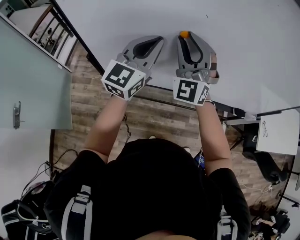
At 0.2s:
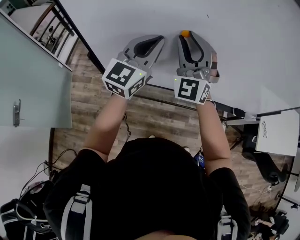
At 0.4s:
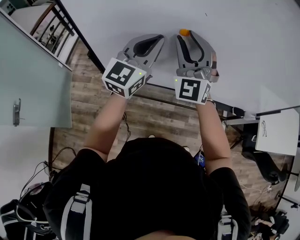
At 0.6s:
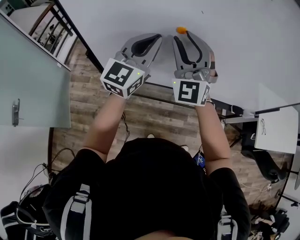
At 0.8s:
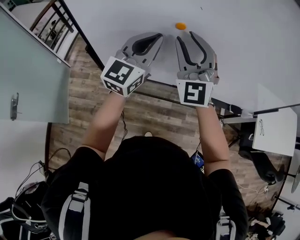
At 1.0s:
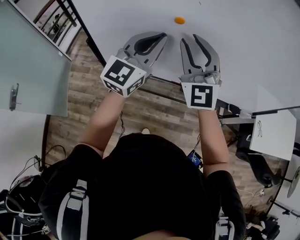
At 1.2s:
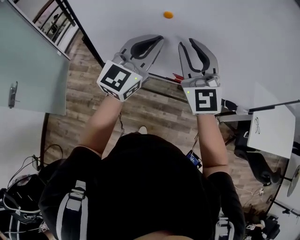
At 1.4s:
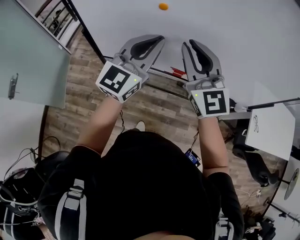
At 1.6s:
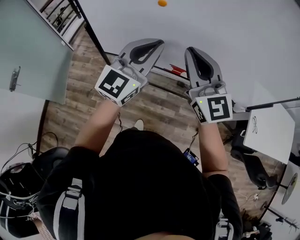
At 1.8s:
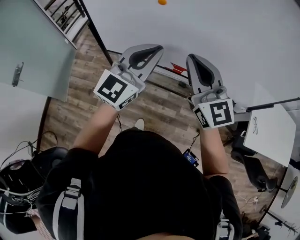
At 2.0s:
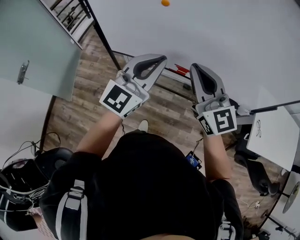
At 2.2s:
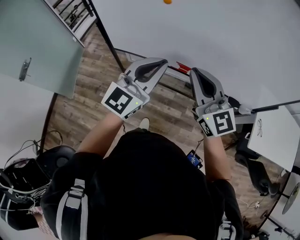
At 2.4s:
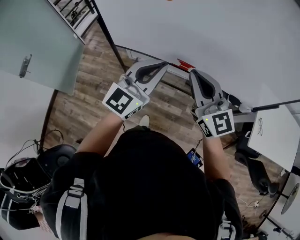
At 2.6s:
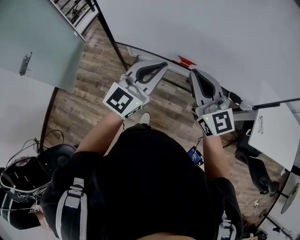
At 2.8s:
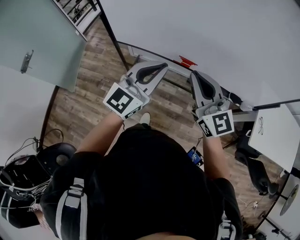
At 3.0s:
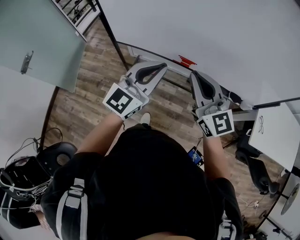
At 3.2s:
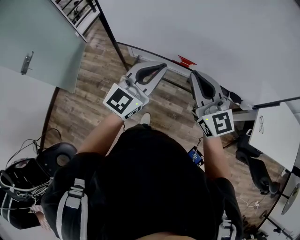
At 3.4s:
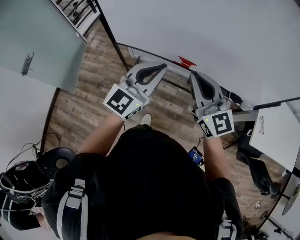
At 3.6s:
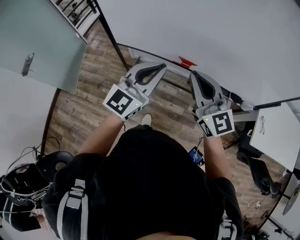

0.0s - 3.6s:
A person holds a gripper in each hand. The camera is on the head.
0.0s - 1.8s: The grippers both shift backward and to the right by about 25 cm. The right gripper rotates around the line of its fingers by about 40 degrees, clockwise from behind, and closes.
1.8s - 3.6s: The grippers both shift backward and downward by roughly 10 cm.

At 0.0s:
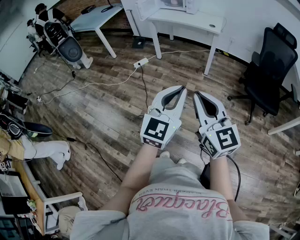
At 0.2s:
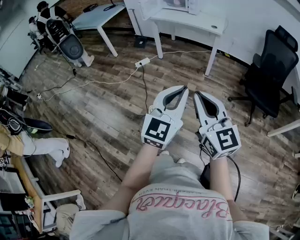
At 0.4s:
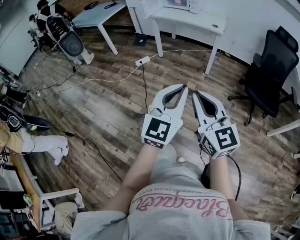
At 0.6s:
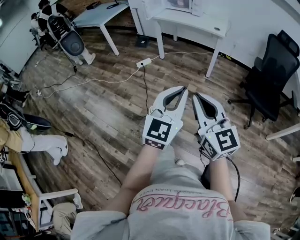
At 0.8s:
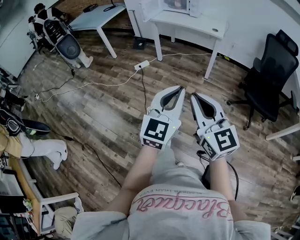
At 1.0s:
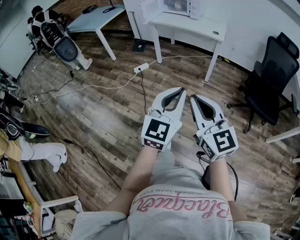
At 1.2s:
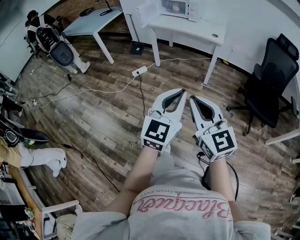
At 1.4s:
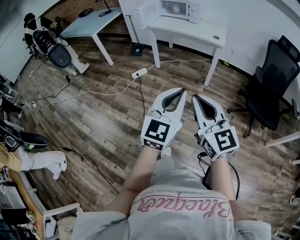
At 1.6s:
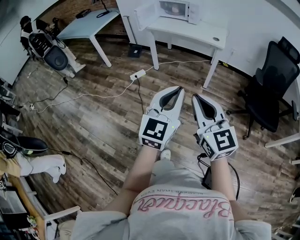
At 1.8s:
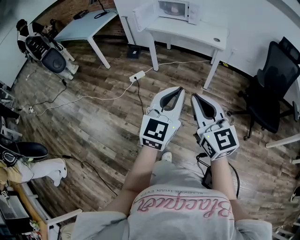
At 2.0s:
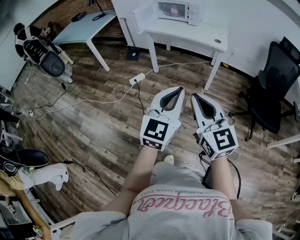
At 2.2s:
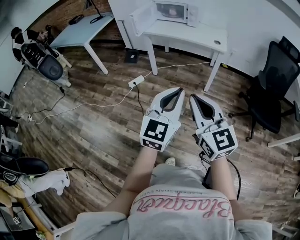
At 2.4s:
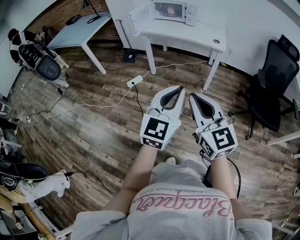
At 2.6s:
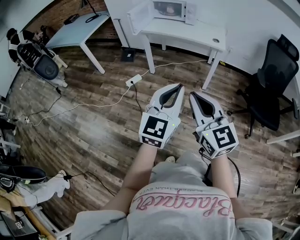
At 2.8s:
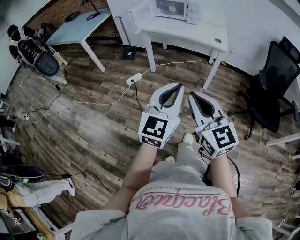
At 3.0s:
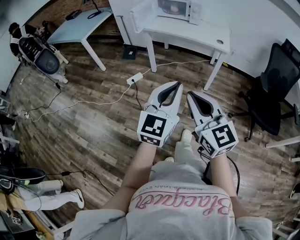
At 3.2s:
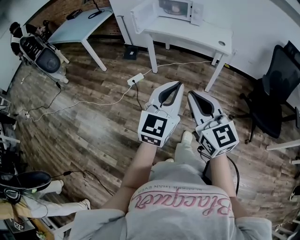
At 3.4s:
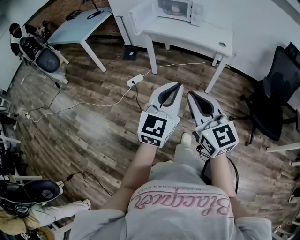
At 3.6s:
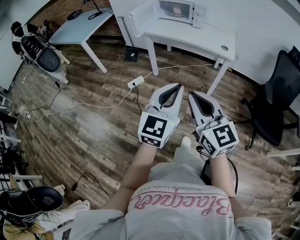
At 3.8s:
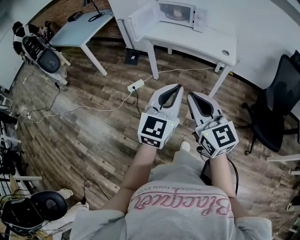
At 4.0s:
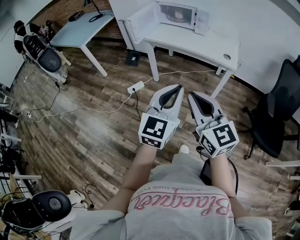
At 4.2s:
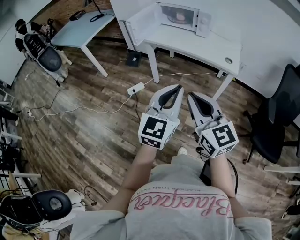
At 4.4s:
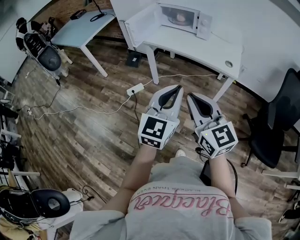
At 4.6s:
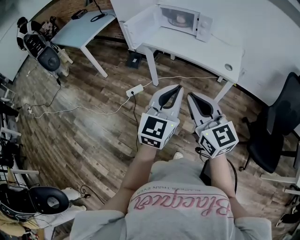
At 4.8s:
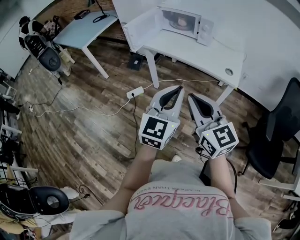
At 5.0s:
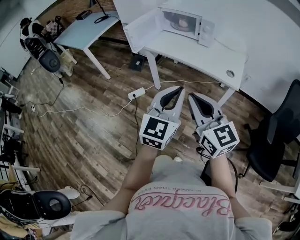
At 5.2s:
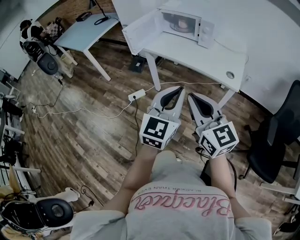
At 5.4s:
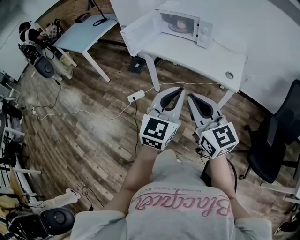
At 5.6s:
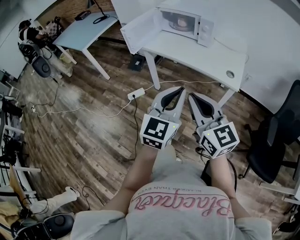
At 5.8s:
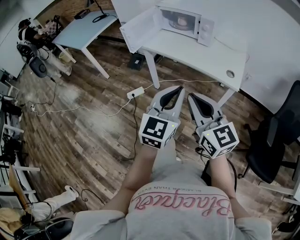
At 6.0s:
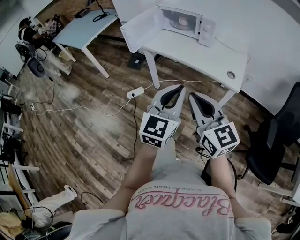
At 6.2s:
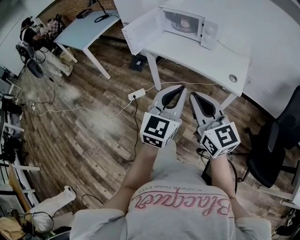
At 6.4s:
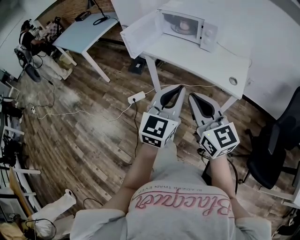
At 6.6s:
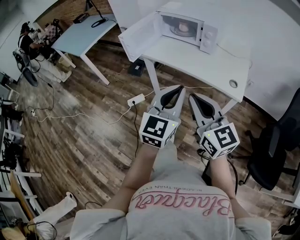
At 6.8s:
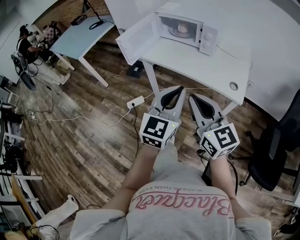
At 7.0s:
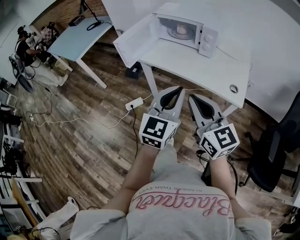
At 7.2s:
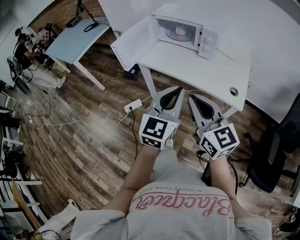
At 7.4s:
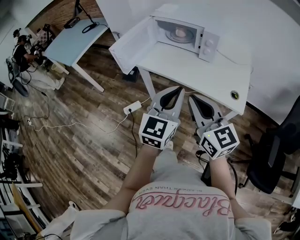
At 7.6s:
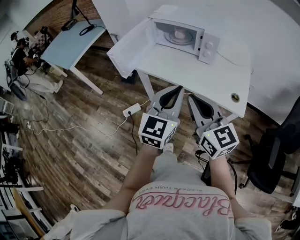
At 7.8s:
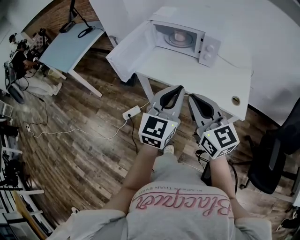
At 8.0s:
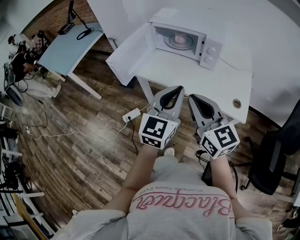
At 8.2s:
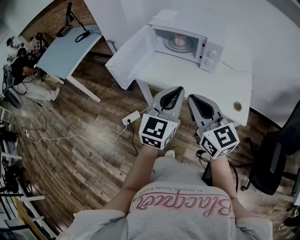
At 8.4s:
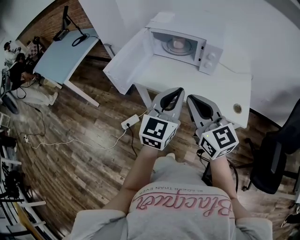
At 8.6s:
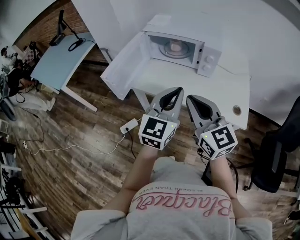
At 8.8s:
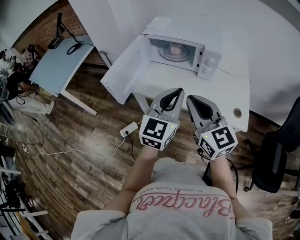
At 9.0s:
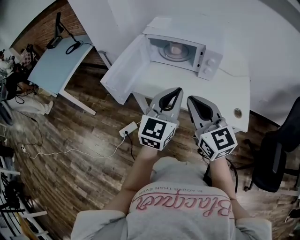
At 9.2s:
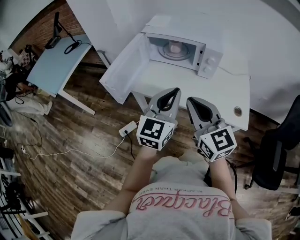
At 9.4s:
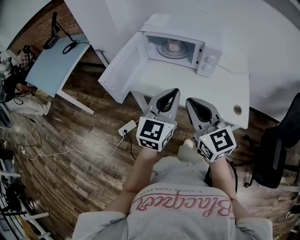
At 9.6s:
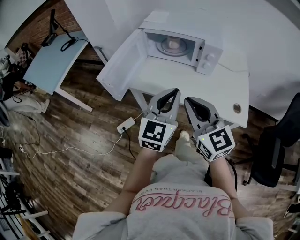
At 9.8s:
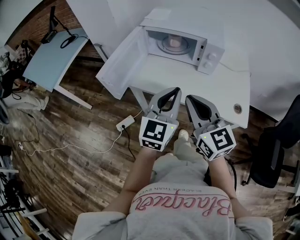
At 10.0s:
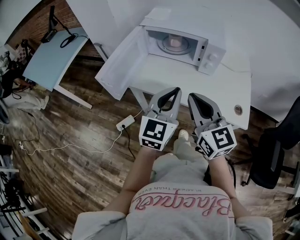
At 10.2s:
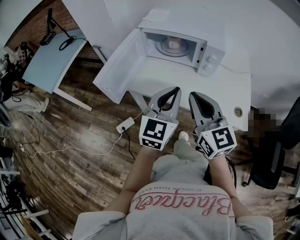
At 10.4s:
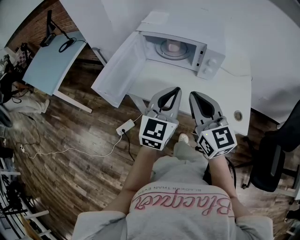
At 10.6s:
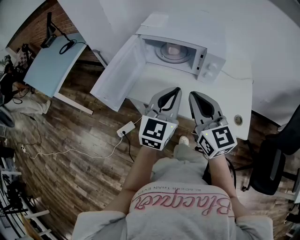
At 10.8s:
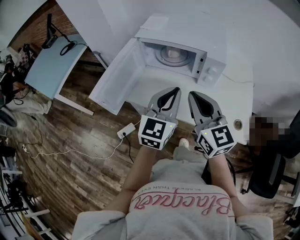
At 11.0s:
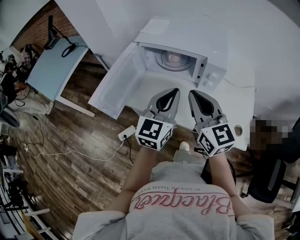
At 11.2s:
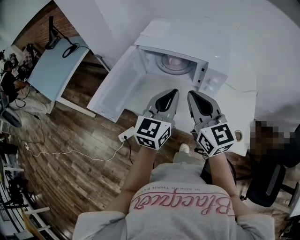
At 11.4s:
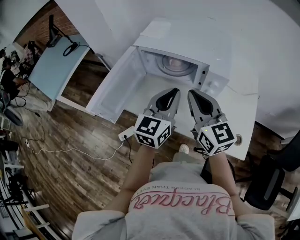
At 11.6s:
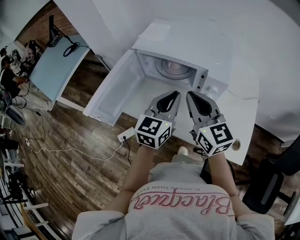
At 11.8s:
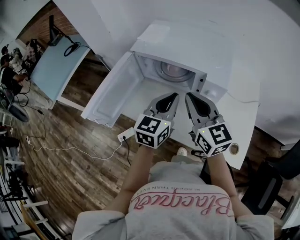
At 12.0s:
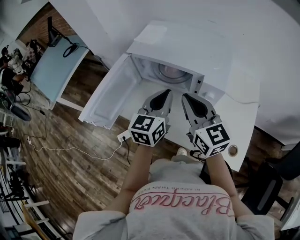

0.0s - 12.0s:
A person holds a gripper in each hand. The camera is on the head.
0.0s - 1.6s: Both grippers travel together forward, approximately 15 cm.
1.6s - 3.0s: The two grippers go some 15 cm forward and to the left.
3.0s - 4.4s: The two grippers go some 20 cm forward.
4.4s - 6.0s: Both grippers move forward and to the right, roughly 10 cm.
6.0s - 7.6s: The grippers both shift forward by roughly 20 cm.
7.6s - 9.0s: The grippers both shift forward by roughly 10 cm.
9.0s - 10.4s: The right gripper is displaced forward by roughly 5 cm, while the left gripper moves some 5 cm.
10.4s - 12.0s: Both grippers travel together forward, about 15 cm.

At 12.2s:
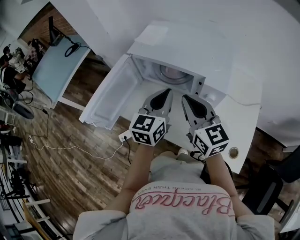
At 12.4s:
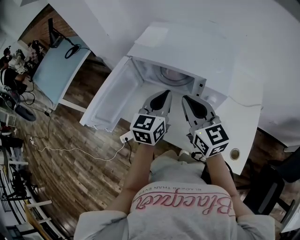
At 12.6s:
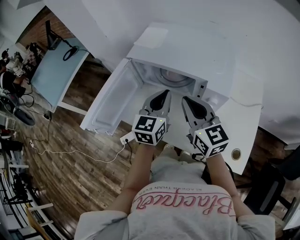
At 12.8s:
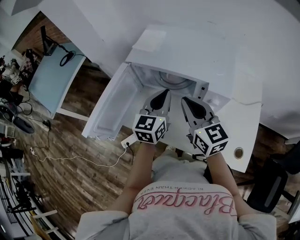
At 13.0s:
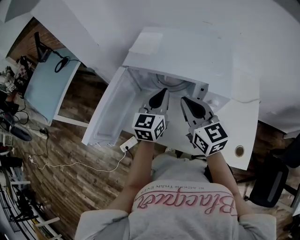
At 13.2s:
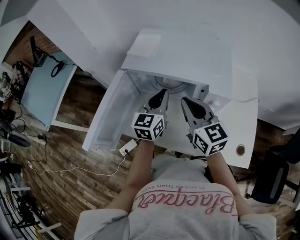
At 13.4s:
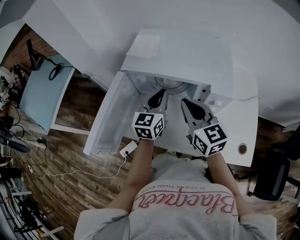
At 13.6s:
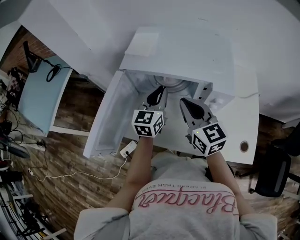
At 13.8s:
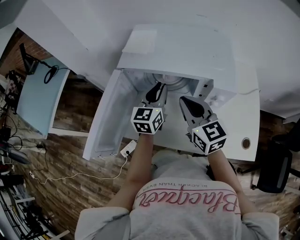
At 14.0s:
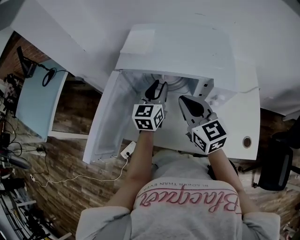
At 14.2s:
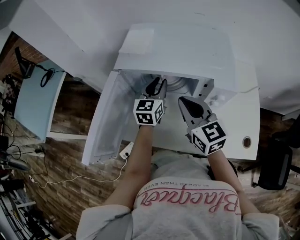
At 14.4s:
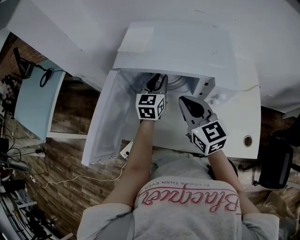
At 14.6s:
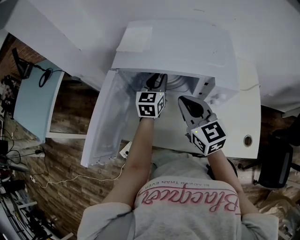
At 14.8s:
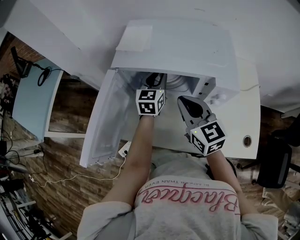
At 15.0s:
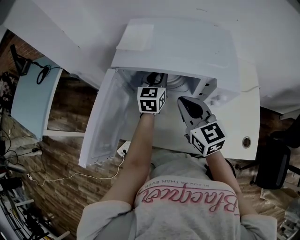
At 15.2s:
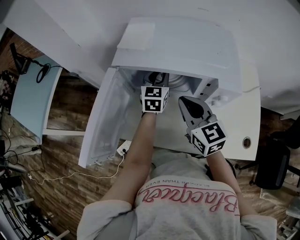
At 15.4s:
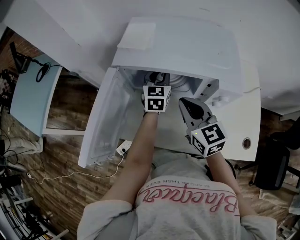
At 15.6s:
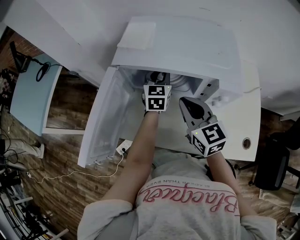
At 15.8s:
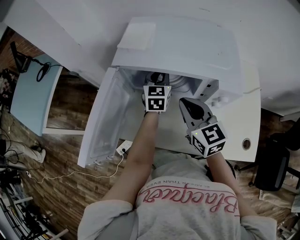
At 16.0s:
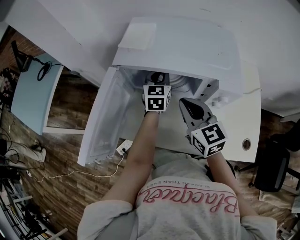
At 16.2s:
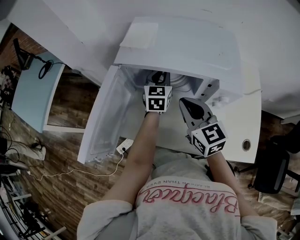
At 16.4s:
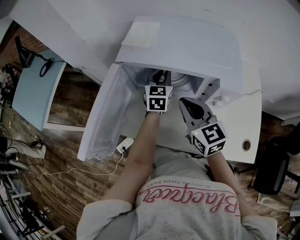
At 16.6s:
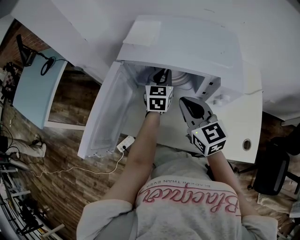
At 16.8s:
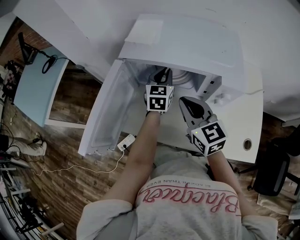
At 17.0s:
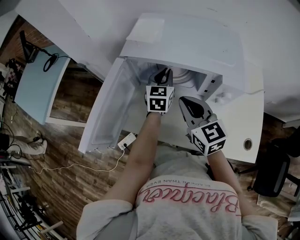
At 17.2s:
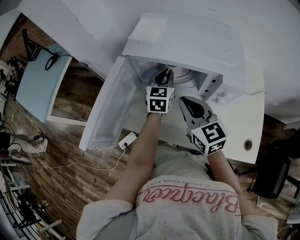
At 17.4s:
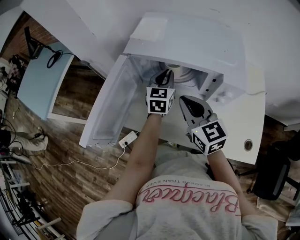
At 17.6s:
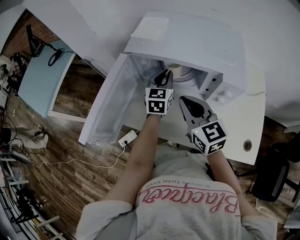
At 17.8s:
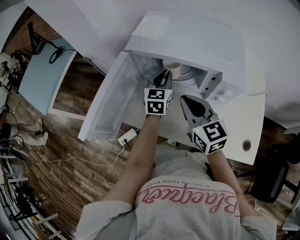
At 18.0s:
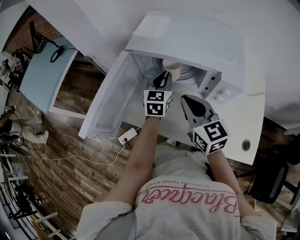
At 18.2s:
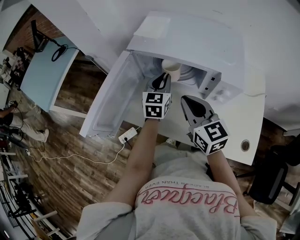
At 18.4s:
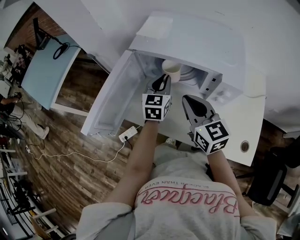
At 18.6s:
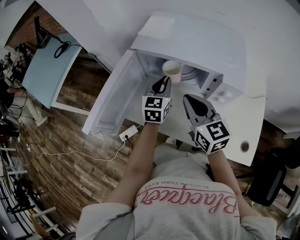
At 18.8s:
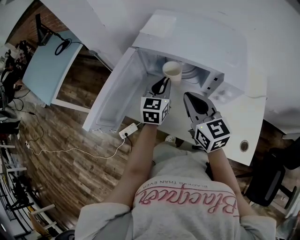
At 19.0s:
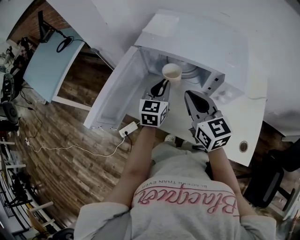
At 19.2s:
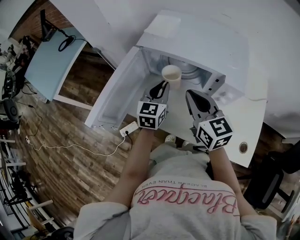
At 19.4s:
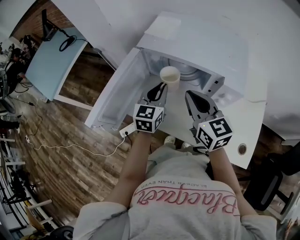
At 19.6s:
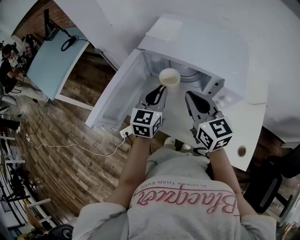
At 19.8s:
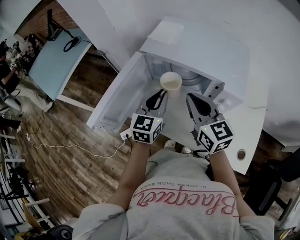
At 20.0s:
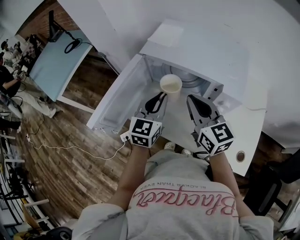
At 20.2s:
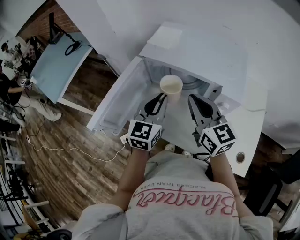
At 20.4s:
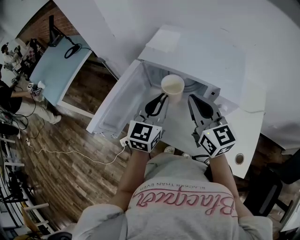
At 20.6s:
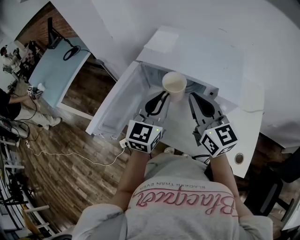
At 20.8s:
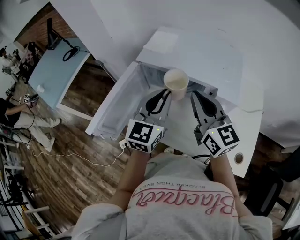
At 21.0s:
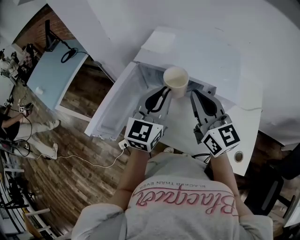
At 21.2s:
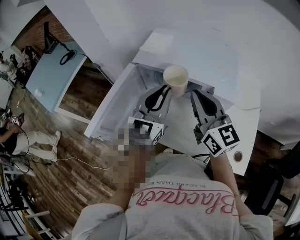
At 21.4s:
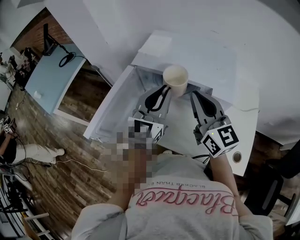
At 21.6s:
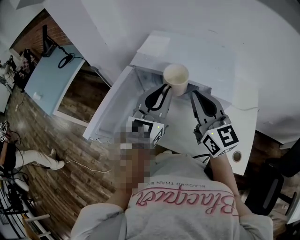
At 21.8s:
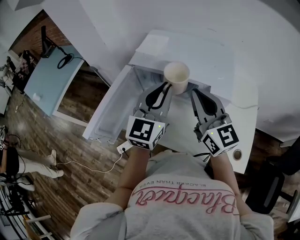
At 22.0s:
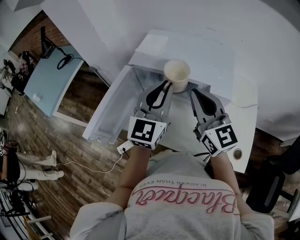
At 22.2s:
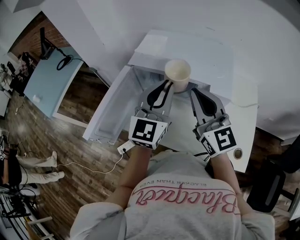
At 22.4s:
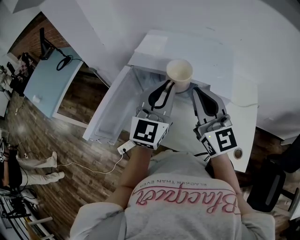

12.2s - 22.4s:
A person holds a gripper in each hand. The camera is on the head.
12.2s - 13.6s: The left gripper travels forward and downward by about 10 cm. Meanwhile the right gripper is displaced forward by roughly 5 cm.
13.6s - 15.2s: The left gripper travels forward and downward by some 10 cm.
15.2s - 16.6s: There are only small adjustments of the grippers.
16.6s - 18.0s: The left gripper heads backward, covering roughly 5 cm.
18.0s - 19.4s: The left gripper is displaced backward by roughly 5 cm.
19.4s - 21.0s: The right gripper is displaced upward by about 10 cm, while the left gripper shifts roughly 15 cm upward.
21.0s - 22.4s: The grippers move only a little.
